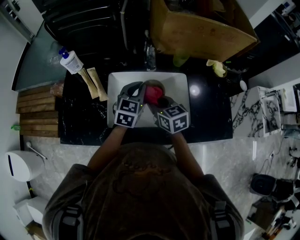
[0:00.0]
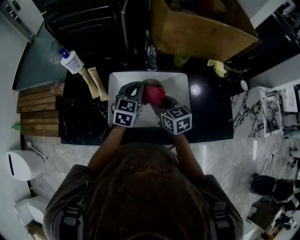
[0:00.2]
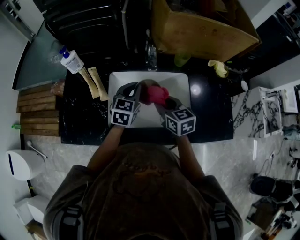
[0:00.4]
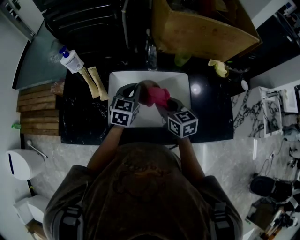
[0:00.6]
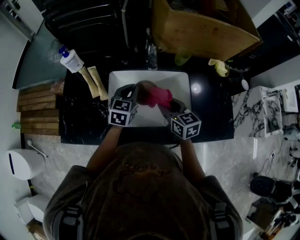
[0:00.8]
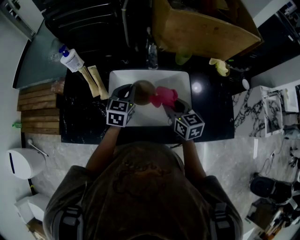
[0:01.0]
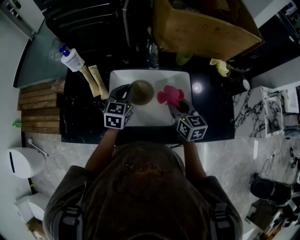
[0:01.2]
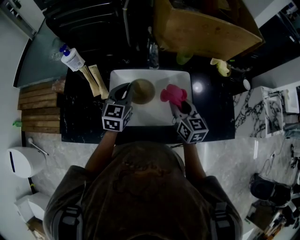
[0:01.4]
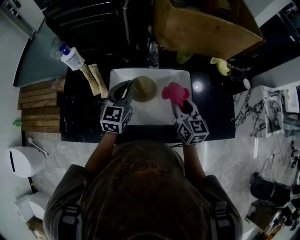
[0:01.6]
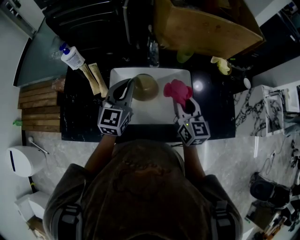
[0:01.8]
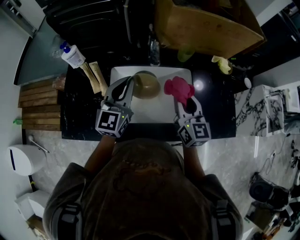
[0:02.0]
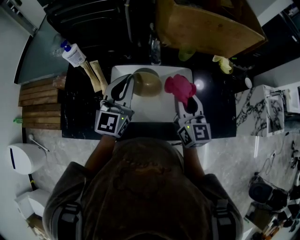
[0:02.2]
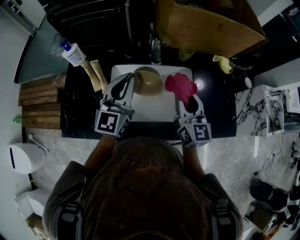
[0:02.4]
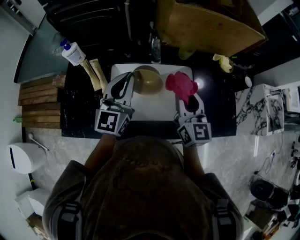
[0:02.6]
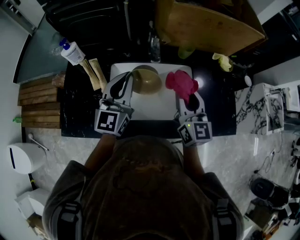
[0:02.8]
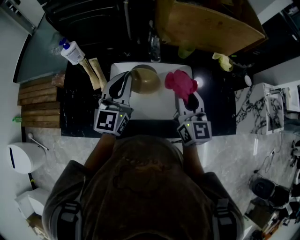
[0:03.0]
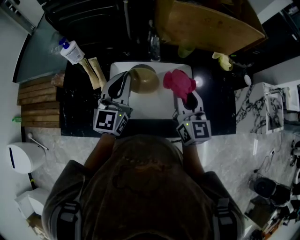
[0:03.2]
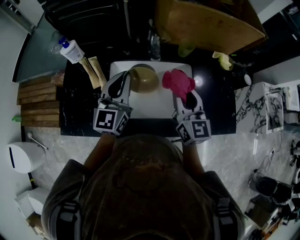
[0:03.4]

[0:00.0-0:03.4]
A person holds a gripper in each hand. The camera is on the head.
0:00.0 to 0:01.6: The right gripper is displaced to the right by roughly 10 cm, and swivels some 20 degrees. The left gripper goes approximately 5 cm to the left.
0:01.6 to 0:03.4: The grippers both shift upward by approximately 10 cm.

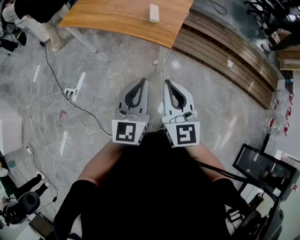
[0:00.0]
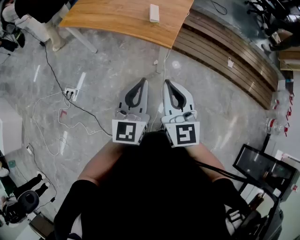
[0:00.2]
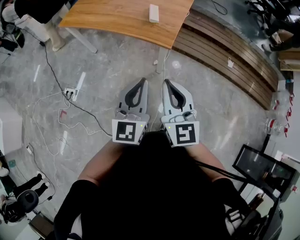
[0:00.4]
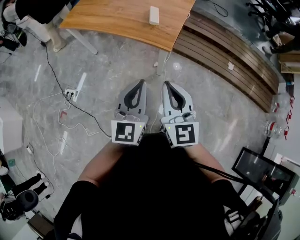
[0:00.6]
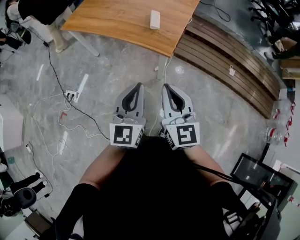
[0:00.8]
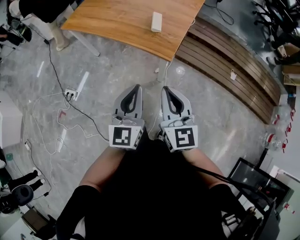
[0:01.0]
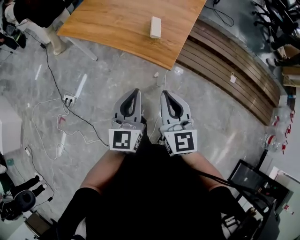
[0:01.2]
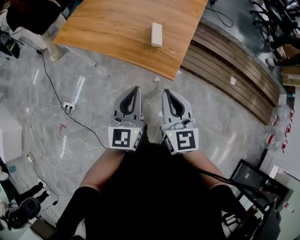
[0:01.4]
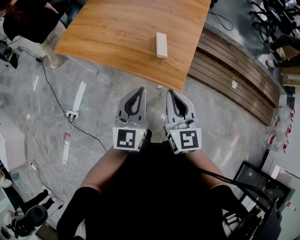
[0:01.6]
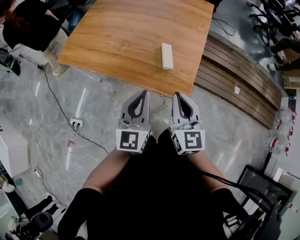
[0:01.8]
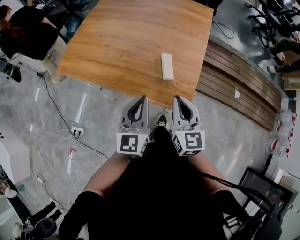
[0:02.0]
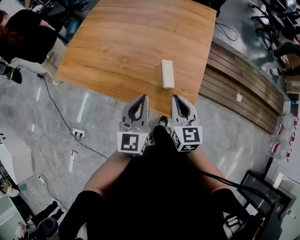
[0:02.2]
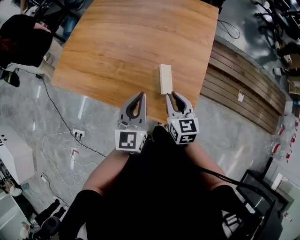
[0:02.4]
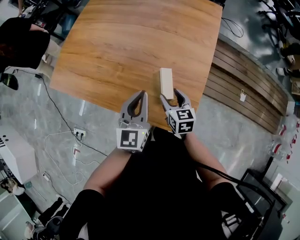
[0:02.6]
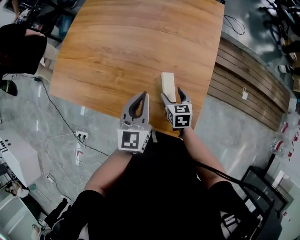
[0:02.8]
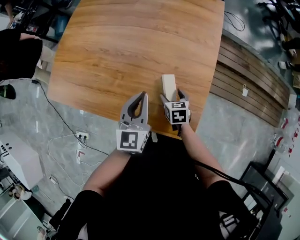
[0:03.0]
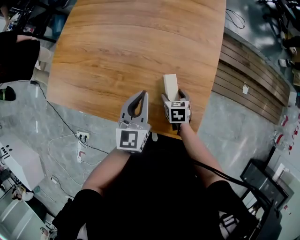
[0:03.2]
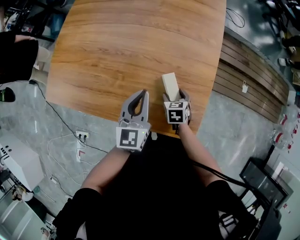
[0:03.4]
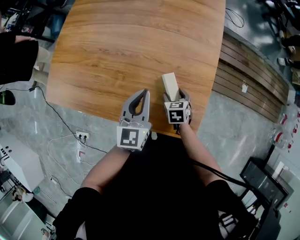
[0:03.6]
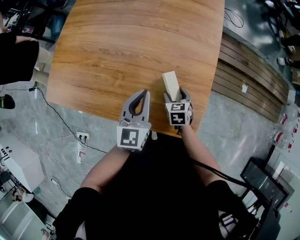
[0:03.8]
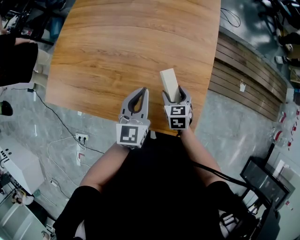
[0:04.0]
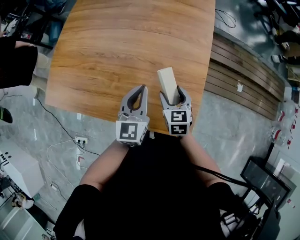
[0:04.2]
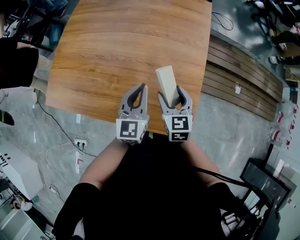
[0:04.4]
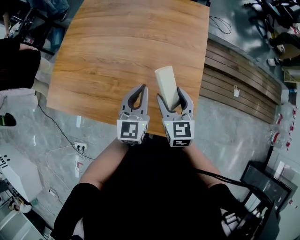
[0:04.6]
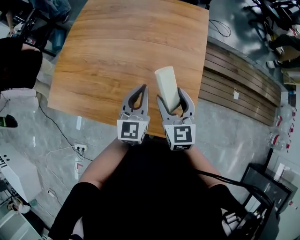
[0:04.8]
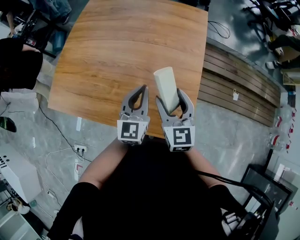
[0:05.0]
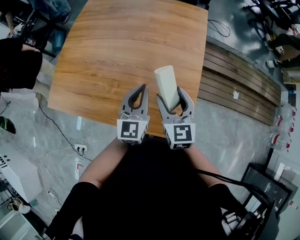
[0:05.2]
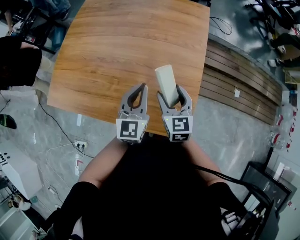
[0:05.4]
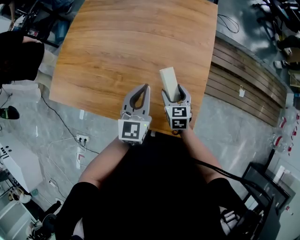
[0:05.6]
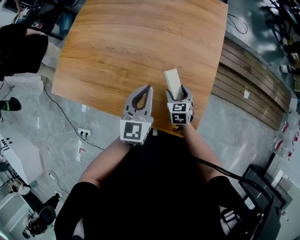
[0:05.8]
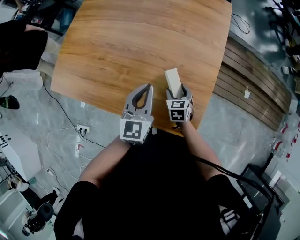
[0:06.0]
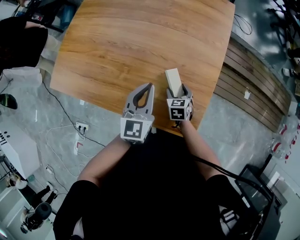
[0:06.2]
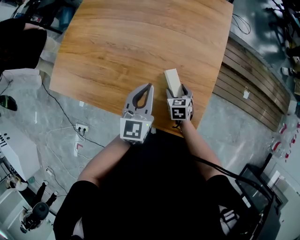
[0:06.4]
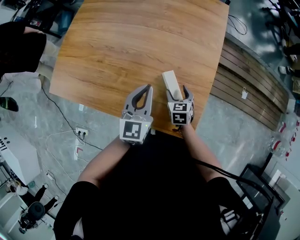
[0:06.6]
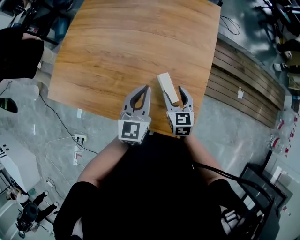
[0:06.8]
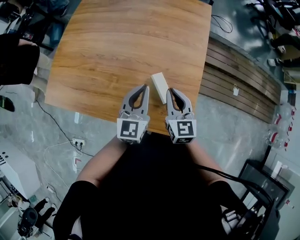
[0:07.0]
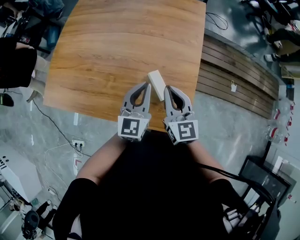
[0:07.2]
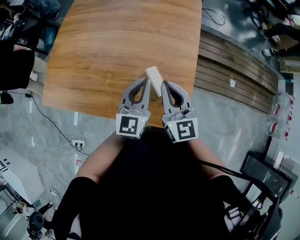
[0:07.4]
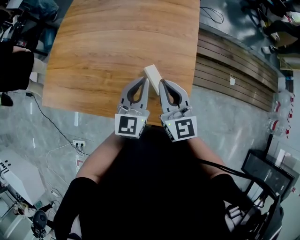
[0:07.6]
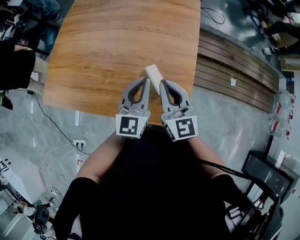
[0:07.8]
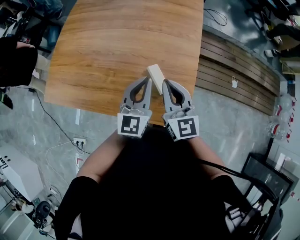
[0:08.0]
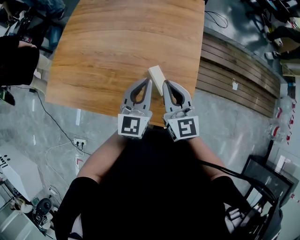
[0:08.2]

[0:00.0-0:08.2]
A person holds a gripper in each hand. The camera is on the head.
0:00.0 to 0:01.6: The two grippers go about 25 cm forward.
0:01.6 to 0:03.2: The right gripper shifts approximately 50 cm forward and downward, tilts its fingers some 50 degrees downward, and opens, while the left gripper moves forward, roughly 35 cm.
0:03.2 to 0:05.0: The left gripper is displaced upward by approximately 5 cm; the right gripper shifts about 25 cm upward, and tilts its fingers roughly 40 degrees upward.
0:05.0 to 0:06.6: The left gripper goes about 5 cm downward, while the right gripper goes approximately 25 cm downward, and points its fingers roughly 30 degrees further downward.
0:06.6 to 0:08.2: The left gripper shifts some 10 cm upward and to the right, while the right gripper moves upward, roughly 25 cm, tilts its fingers some 40 degrees upward, and closes.

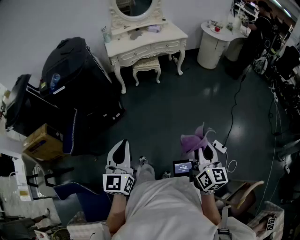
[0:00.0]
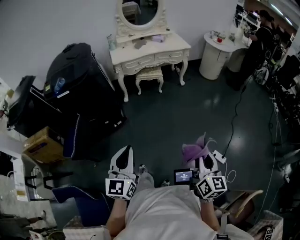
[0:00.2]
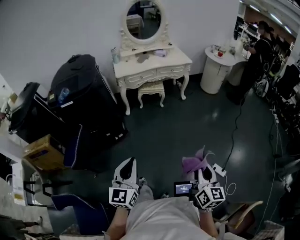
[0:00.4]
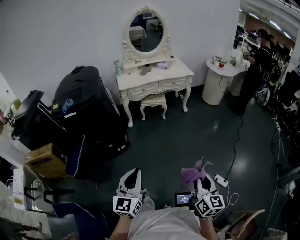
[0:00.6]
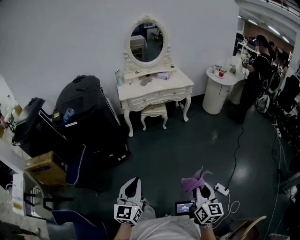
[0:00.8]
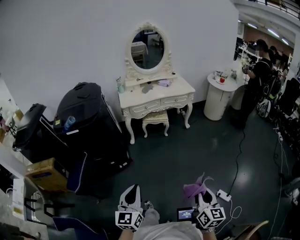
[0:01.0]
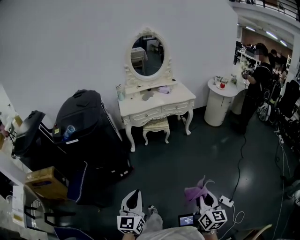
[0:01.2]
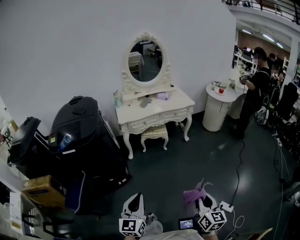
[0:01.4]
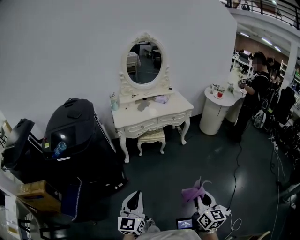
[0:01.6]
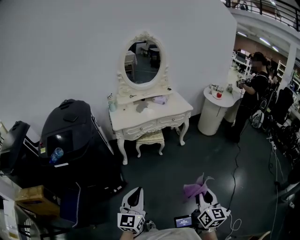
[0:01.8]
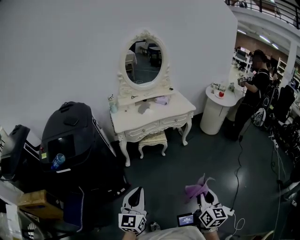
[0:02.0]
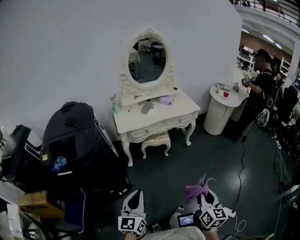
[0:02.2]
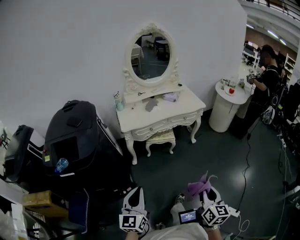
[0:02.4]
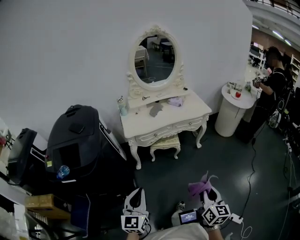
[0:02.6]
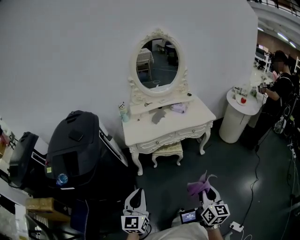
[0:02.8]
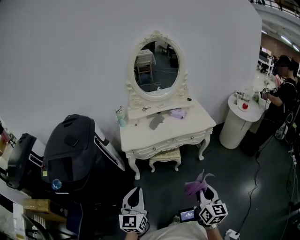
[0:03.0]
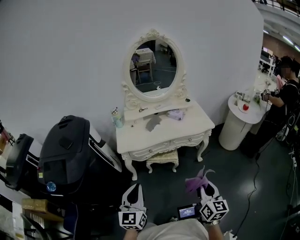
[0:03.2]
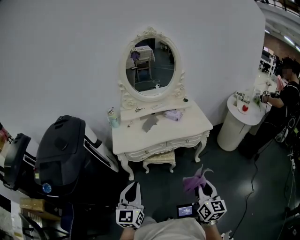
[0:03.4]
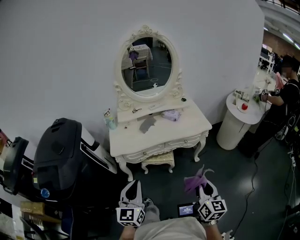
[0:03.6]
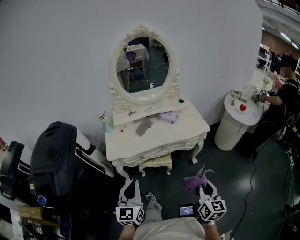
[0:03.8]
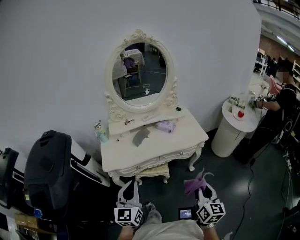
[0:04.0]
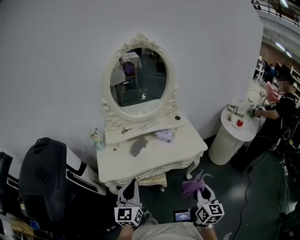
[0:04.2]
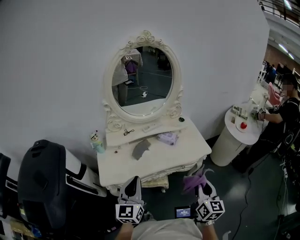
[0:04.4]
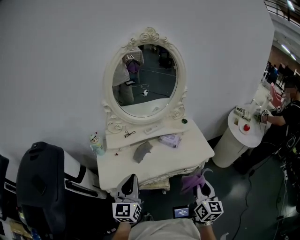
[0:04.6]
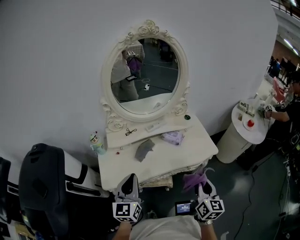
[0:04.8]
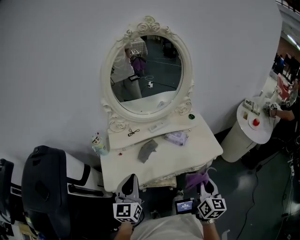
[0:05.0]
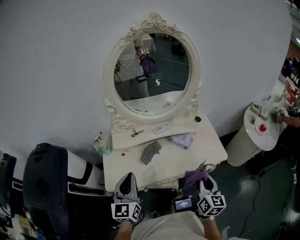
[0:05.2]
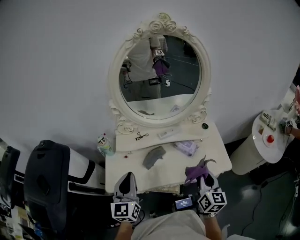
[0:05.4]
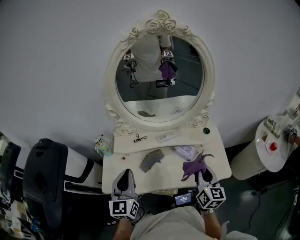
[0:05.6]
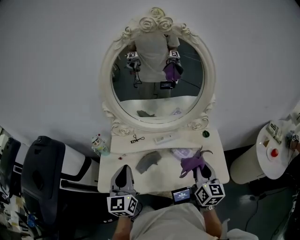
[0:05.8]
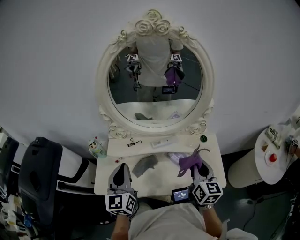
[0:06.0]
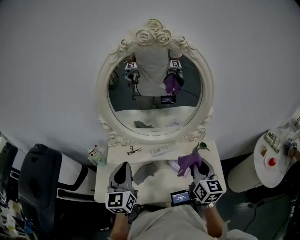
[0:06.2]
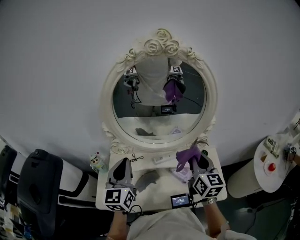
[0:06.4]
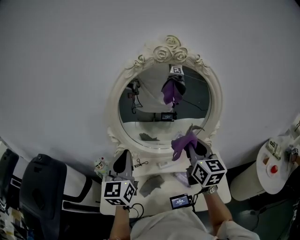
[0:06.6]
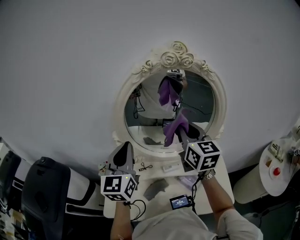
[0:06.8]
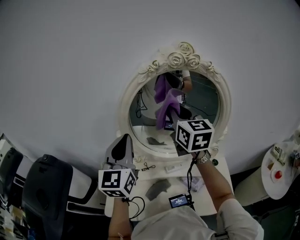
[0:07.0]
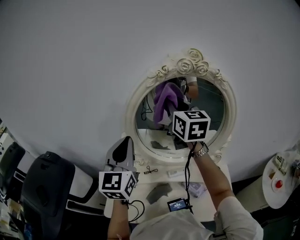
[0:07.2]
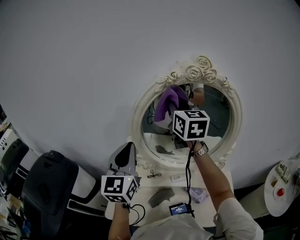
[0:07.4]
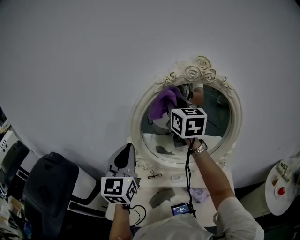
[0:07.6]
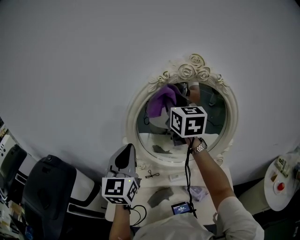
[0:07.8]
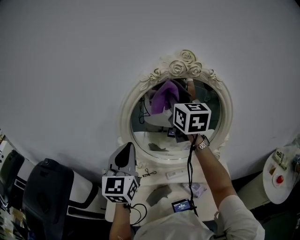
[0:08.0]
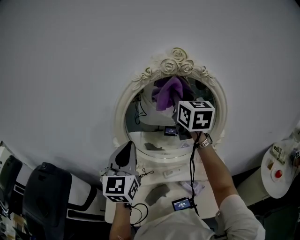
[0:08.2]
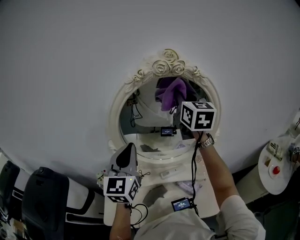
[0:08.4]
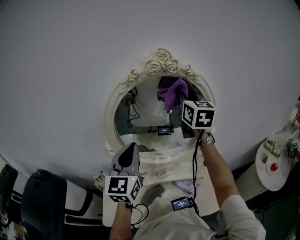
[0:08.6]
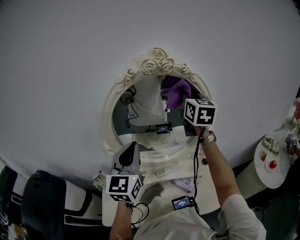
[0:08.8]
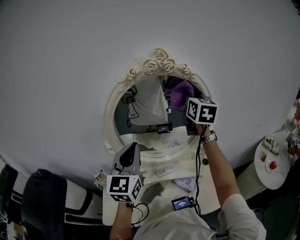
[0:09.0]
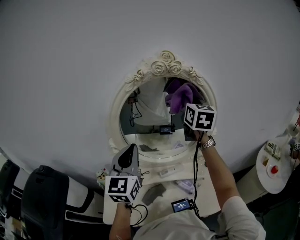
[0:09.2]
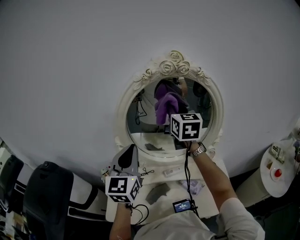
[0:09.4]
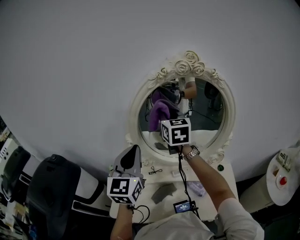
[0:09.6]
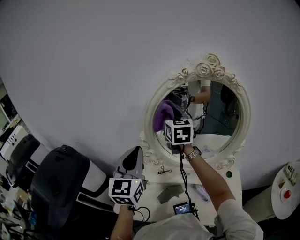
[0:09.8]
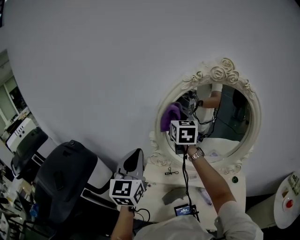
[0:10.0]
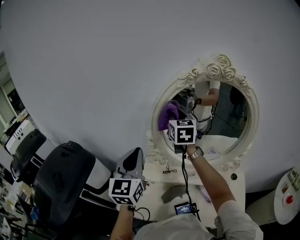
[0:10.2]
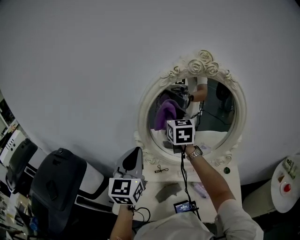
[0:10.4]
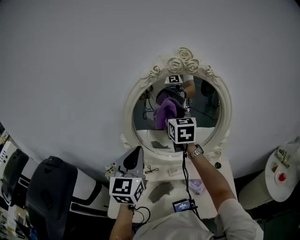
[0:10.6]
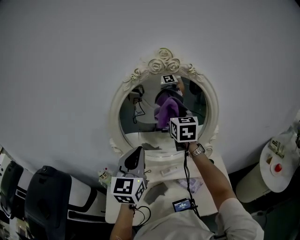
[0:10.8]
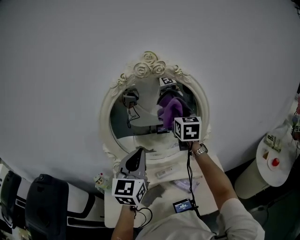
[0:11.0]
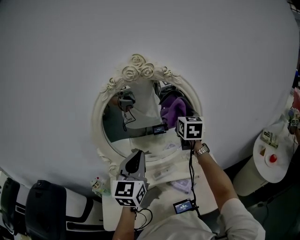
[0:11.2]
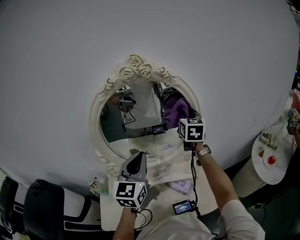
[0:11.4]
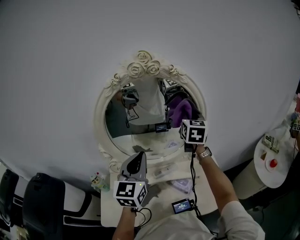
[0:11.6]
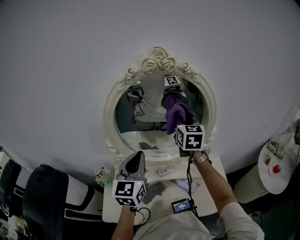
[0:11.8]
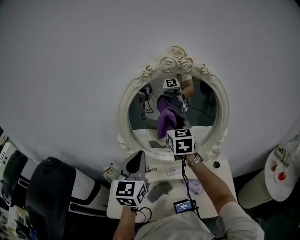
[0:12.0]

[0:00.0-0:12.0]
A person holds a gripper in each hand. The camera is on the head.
0:00.0 to 0:01.6: The grippers both shift forward by approximately 20 cm.
0:01.6 to 0:03.0: The two grippers go approximately 35 cm forward.
0:03.0 to 0:04.4: Both grippers move forward, some 40 cm.
0:04.4 to 0:06.0: Both grippers travel together forward, some 35 cm. The right gripper turns by about 20 degrees, while the left gripper turns by about 30 degrees.
0:06.0 to 0:07.6: The left gripper heads upward and forward, covering roughly 25 cm. Meanwhile the right gripper is displaced upward, forward and to the left by about 50 cm, and changes its angle by about 20 degrees.
0:07.6 to 0:09.0: The left gripper goes about 10 cm to the right; the right gripper is displaced to the right by approximately 20 cm, and changes its angle by about 20 degrees.
0:09.0 to 0:10.4: The left gripper heads to the left, covering some 10 cm. Meanwhile the right gripper travels to the left by about 25 cm, and turns by approximately 20 degrees.
0:10.4 to 0:12.0: The left gripper goes some 10 cm to the right. The right gripper travels to the right and back again, some 30 cm each way.
